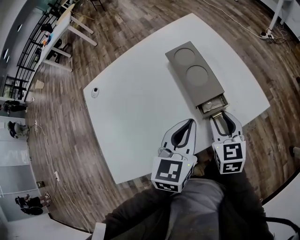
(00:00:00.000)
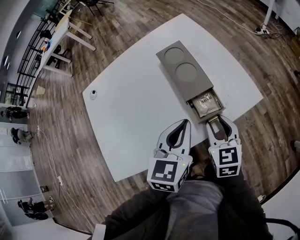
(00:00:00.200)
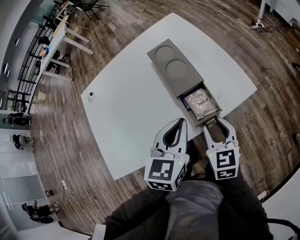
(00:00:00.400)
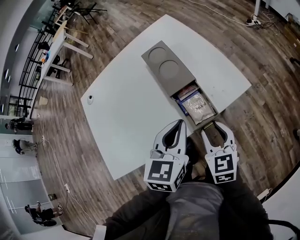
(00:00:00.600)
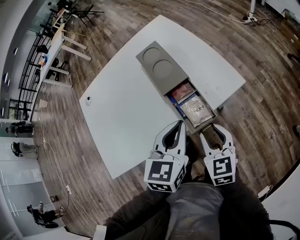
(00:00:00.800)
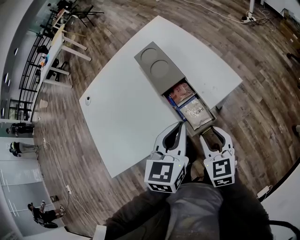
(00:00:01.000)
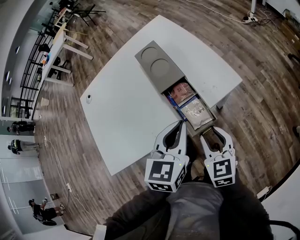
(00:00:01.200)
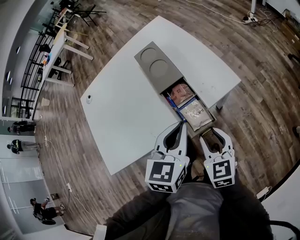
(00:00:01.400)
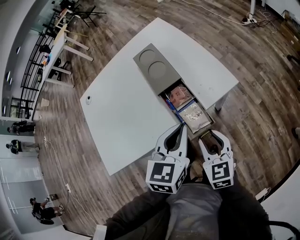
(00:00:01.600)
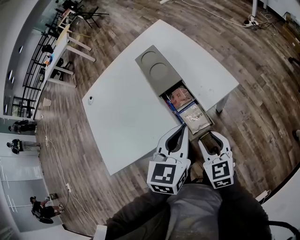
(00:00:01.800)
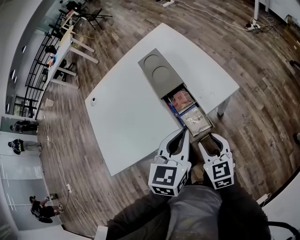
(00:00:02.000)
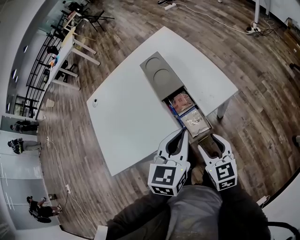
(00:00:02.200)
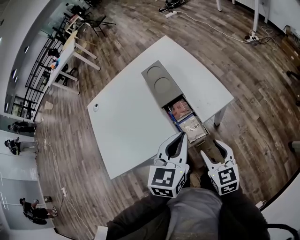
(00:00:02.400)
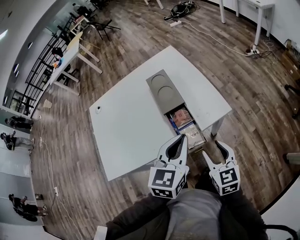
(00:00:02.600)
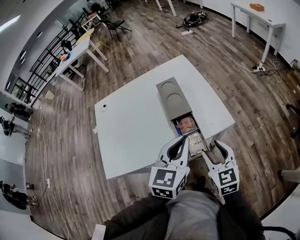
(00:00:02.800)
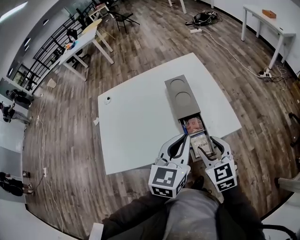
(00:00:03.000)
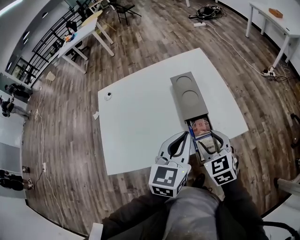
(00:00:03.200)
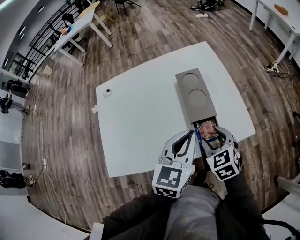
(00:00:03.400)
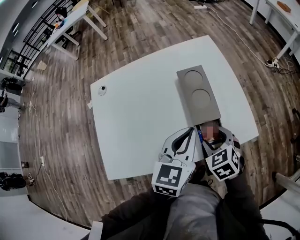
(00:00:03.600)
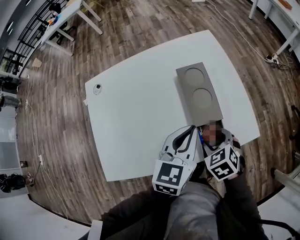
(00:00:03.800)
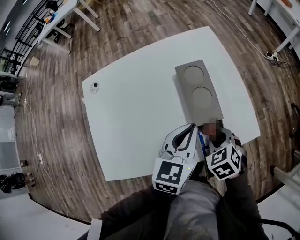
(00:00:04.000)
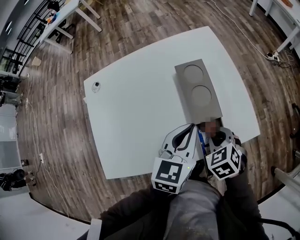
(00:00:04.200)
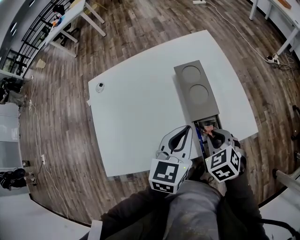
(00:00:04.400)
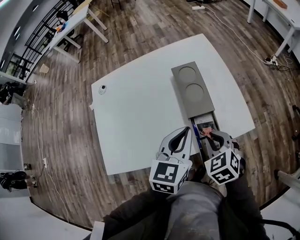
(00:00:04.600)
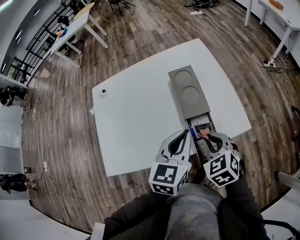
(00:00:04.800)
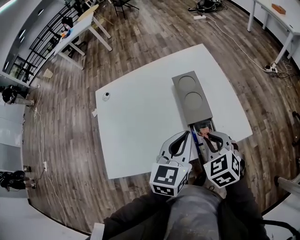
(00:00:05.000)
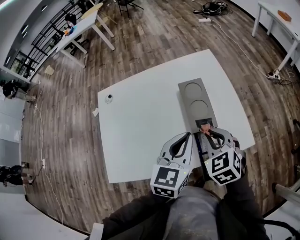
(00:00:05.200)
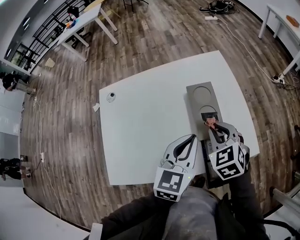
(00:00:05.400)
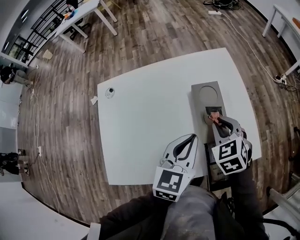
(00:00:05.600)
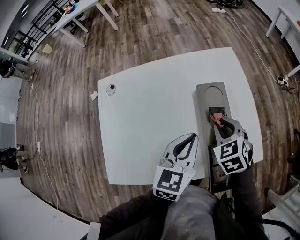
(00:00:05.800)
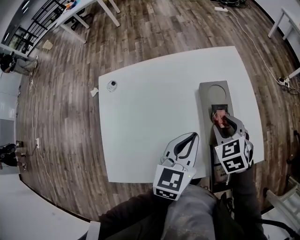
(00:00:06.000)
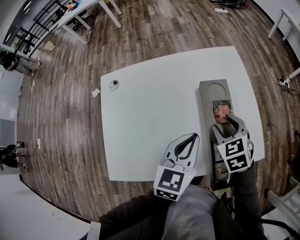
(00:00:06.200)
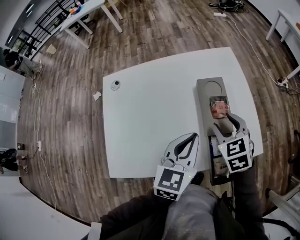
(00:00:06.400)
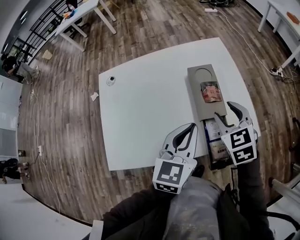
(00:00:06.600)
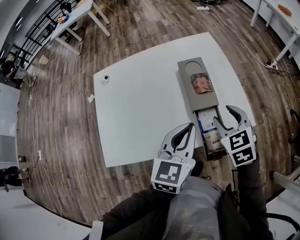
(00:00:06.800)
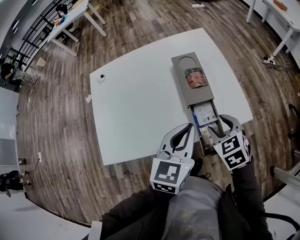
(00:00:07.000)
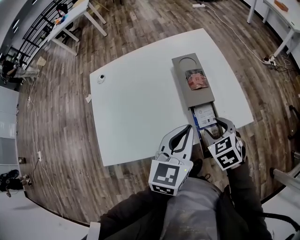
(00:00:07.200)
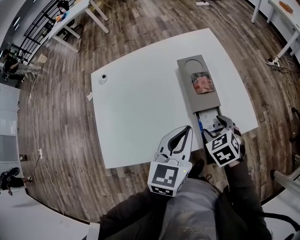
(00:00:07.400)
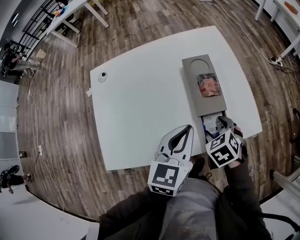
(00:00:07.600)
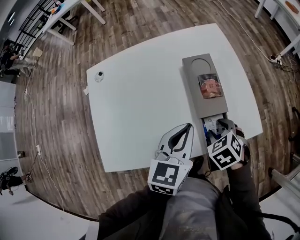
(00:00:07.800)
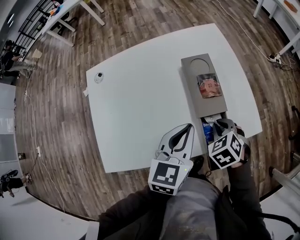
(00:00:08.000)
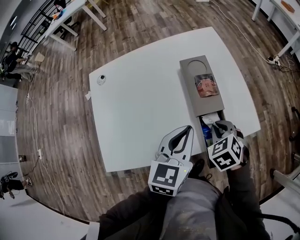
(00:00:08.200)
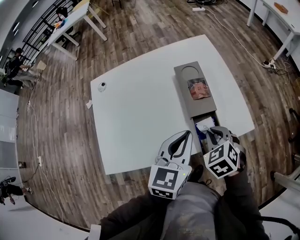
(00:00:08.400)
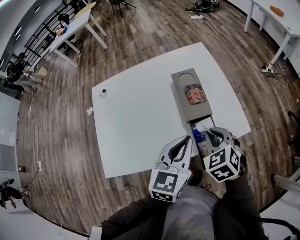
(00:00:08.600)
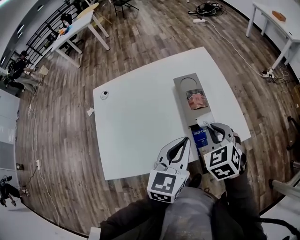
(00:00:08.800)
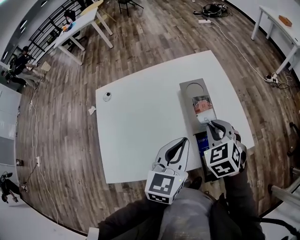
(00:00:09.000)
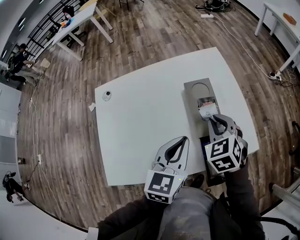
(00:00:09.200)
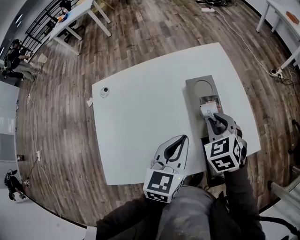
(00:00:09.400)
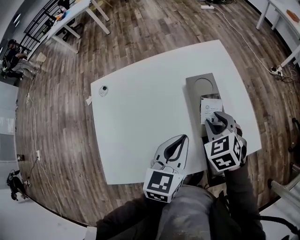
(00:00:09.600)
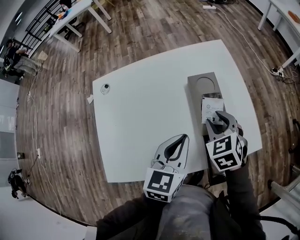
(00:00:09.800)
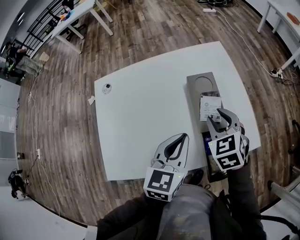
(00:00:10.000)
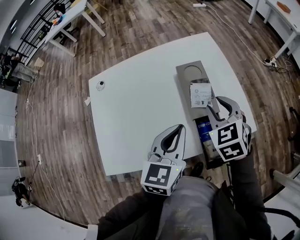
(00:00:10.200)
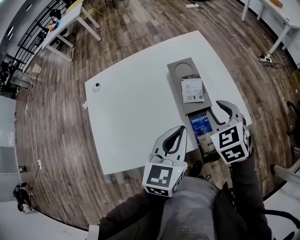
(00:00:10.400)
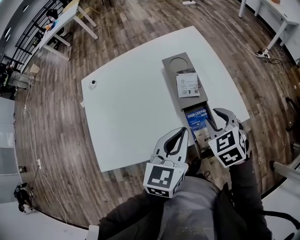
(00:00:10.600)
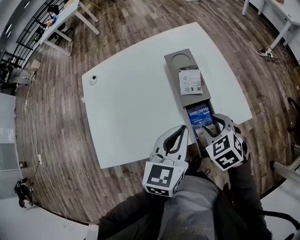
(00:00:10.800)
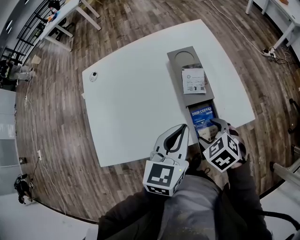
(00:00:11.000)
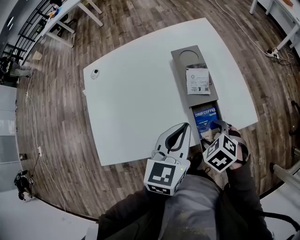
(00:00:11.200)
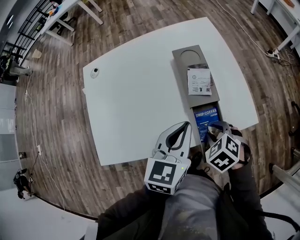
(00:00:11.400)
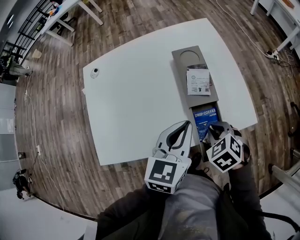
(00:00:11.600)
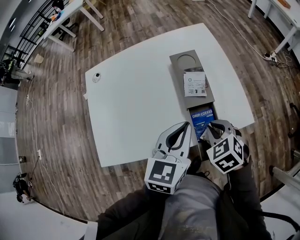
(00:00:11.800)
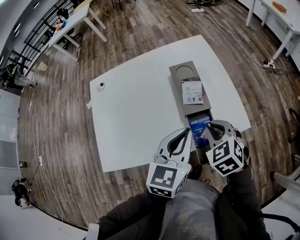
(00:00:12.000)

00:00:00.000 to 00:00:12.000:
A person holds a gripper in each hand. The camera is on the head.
00:00:00.000 to 00:00:01.600: The right gripper moves backward and to the right, about 15 cm. The left gripper travels to the right and backward by about 15 cm.
00:00:01.600 to 00:00:03.000: The left gripper travels upward by approximately 10 cm; the right gripper travels upward and forward by roughly 10 cm.
00:00:03.000 to 00:00:04.400: The right gripper is displaced forward and downward by approximately 10 cm, rotates about 30 degrees, and closes, while the left gripper travels forward, downward and to the left by roughly 10 cm.
00:00:04.400 to 00:00:06.000: The left gripper moves forward, about 5 cm; the right gripper is displaced forward by roughly 15 cm.
00:00:06.000 to 00:00:07.600: The right gripper heads backward and downward, covering approximately 15 cm, and opens, while the left gripper shifts about 5 cm backward.
00:00:07.600 to 00:00:09.000: The right gripper is displaced upward and forward by approximately 15 cm, changes its angle by roughly 20 degrees, and closes.
00:00:10.400 to 00:00:12.000: The right gripper reaches some 10 cm downward, then returns, and opens, then closes again.

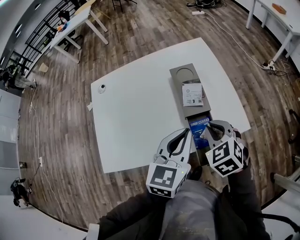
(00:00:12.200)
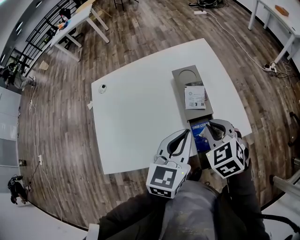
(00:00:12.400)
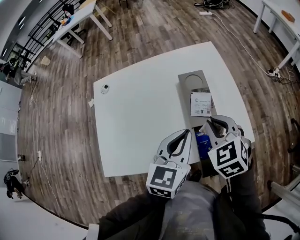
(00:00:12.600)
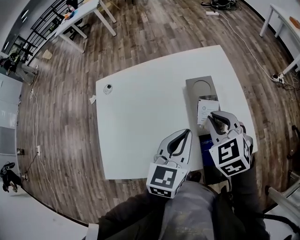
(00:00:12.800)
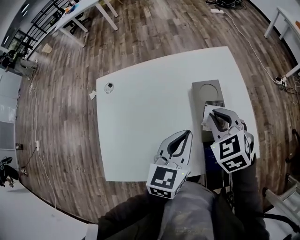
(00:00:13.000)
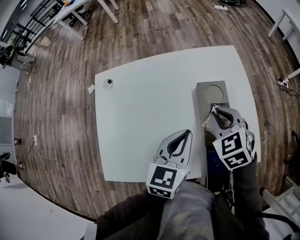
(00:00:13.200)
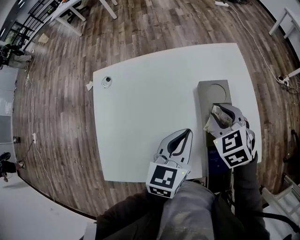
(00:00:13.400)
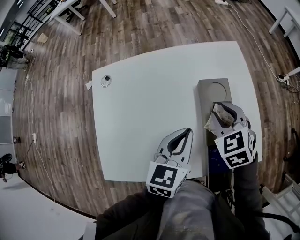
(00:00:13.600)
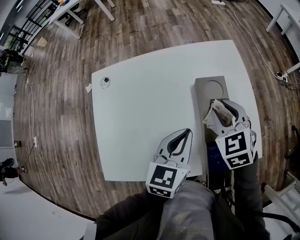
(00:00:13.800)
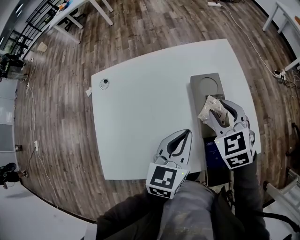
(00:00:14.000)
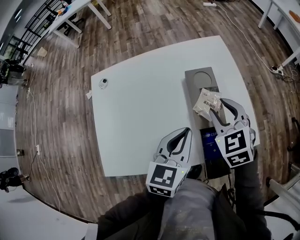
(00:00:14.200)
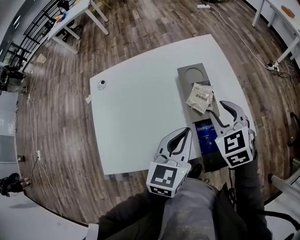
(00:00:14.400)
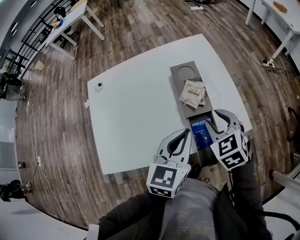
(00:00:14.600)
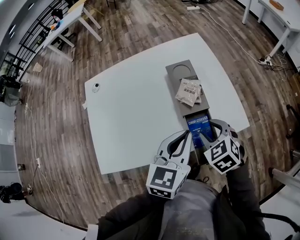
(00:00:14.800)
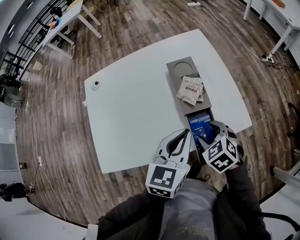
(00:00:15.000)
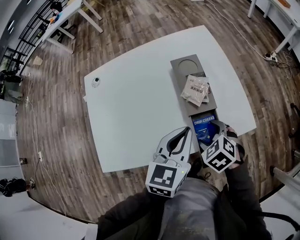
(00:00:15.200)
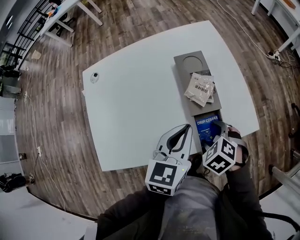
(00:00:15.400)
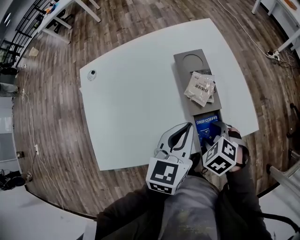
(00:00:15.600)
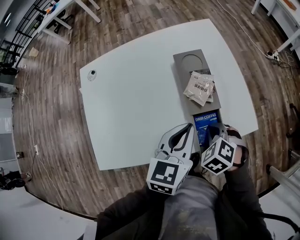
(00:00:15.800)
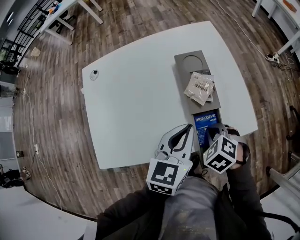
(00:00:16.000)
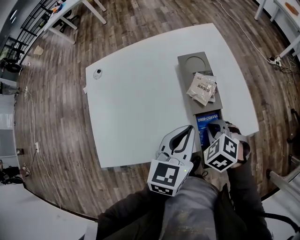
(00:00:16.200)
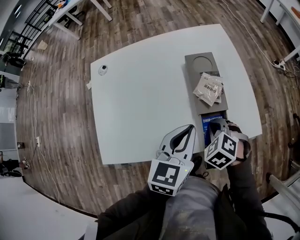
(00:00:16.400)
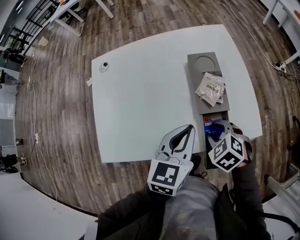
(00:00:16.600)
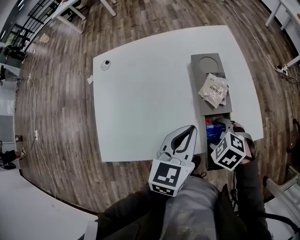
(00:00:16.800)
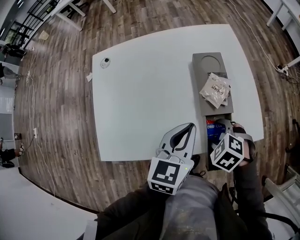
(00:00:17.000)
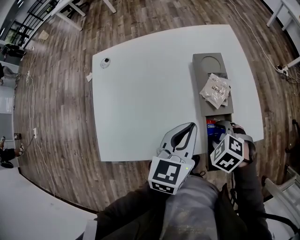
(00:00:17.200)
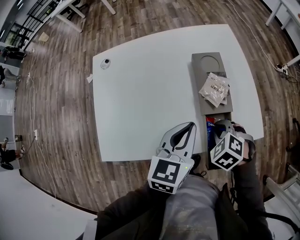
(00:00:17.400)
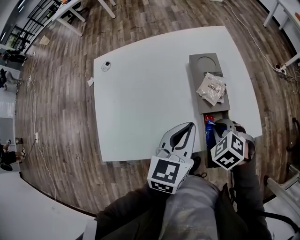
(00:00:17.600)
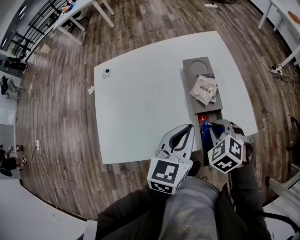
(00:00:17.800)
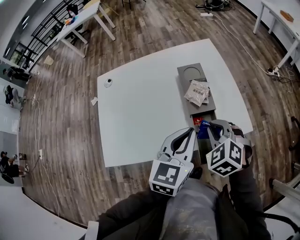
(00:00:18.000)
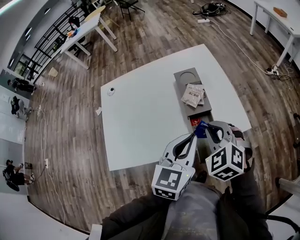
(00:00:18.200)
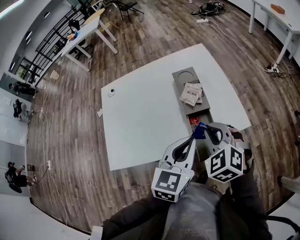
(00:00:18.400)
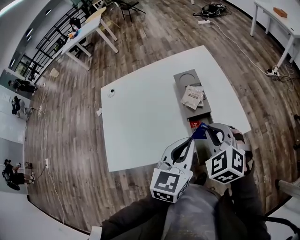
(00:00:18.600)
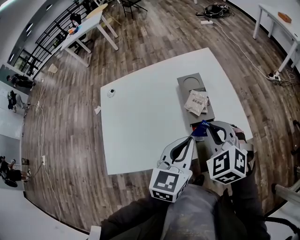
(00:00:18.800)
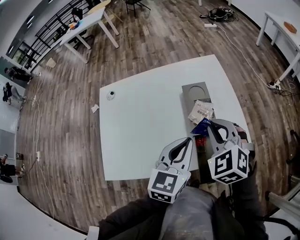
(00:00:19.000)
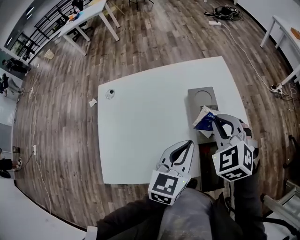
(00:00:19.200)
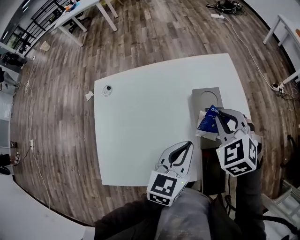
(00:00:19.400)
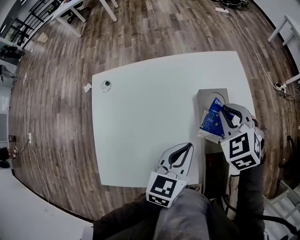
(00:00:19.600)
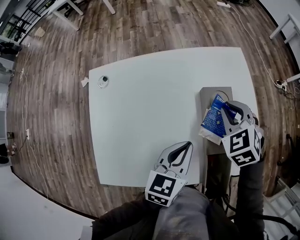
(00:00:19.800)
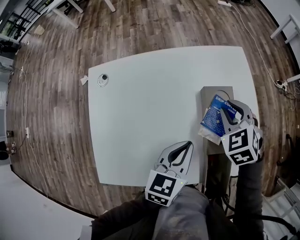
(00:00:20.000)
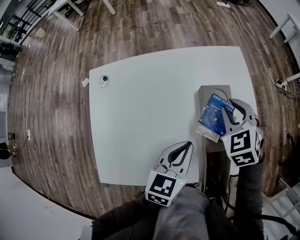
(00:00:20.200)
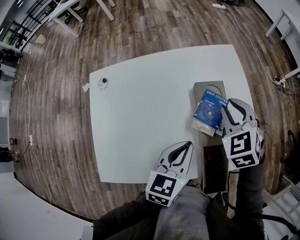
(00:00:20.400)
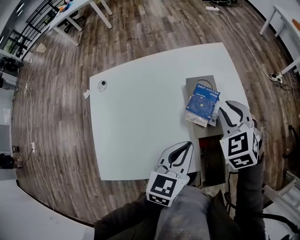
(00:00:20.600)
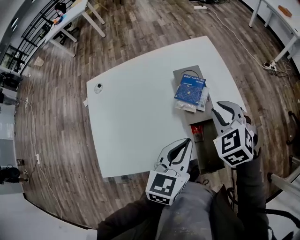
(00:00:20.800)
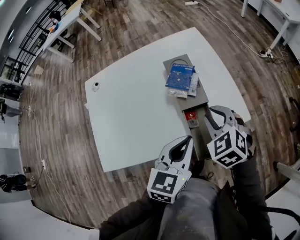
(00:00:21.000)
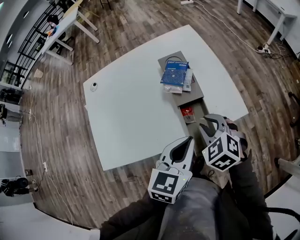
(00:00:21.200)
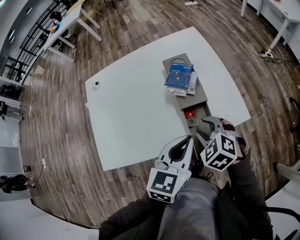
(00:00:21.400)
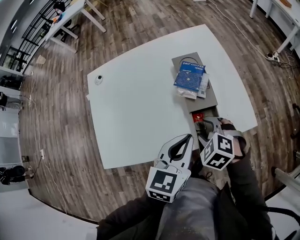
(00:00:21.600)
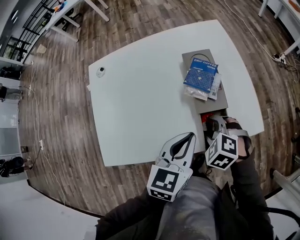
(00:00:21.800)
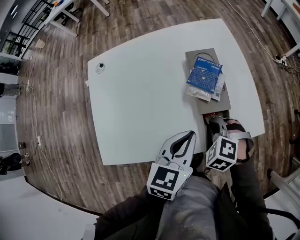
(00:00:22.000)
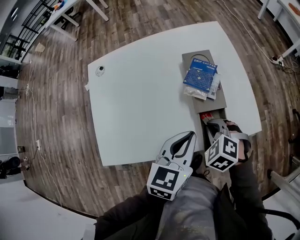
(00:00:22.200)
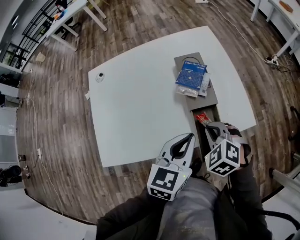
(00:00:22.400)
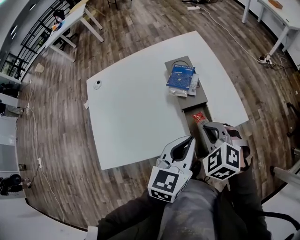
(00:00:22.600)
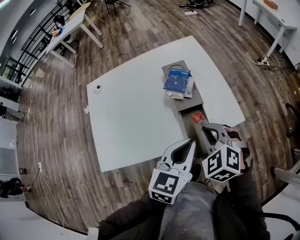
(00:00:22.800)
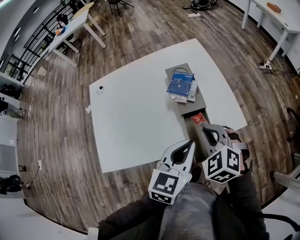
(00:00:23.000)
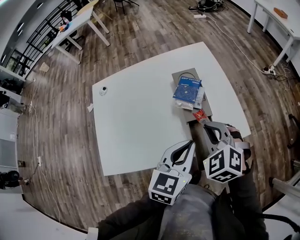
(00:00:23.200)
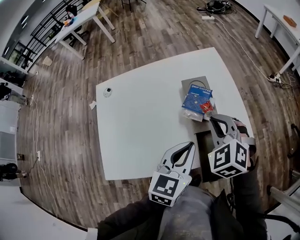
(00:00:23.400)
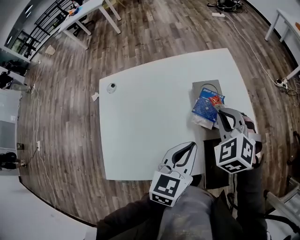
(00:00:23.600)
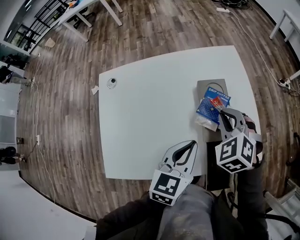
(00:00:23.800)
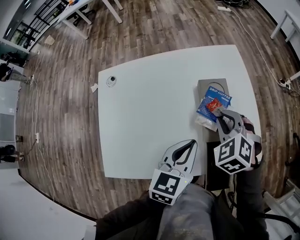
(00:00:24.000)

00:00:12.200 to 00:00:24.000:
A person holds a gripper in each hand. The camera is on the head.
00:00:12.200 to 00:00:13.600: The right gripper goes approximately 15 cm forward. The left gripper is displaced forward, to the left and downward by roughly 15 cm.
00:00:13.600 to 00:00:15.200: The left gripper heads backward and to the right, covering about 10 cm; the right gripper is displaced backward and downward by about 20 cm, and opens.
00:00:15.200 to 00:00:16.600: The right gripper closes its fingers.
00:00:16.600 to 00:00:18.200: The left gripper goes approximately 10 cm backward, upward and to the right. Meanwhile the right gripper moves upward, approximately 15 cm, turns by approximately 30 degrees, and opens, then closes again.
00:00:18.200 to 00:00:19.600: The right gripper goes roughly 20 cm forward. Meanwhile the left gripper shifts approximately 15 cm forward, to the left and downward.
00:00:19.600 to 00:00:21.000: The two grippers go roughly 15 cm backward and to the right.
00:00:21.000 to 00:00:22.600: The right gripper shifts some 5 cm backward, travels downward and back again, some 10 cm each way, and opens and closes again.
00:00:22.600 to 00:00:24.000: The left gripper heads forward and to the left, covering some 15 cm. The right gripper travels forward by some 15 cm.
